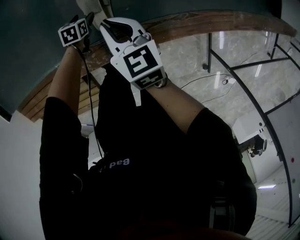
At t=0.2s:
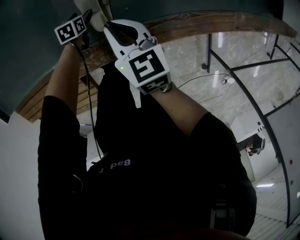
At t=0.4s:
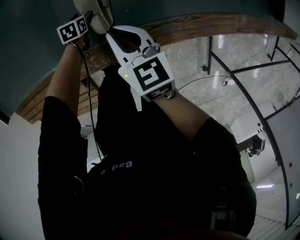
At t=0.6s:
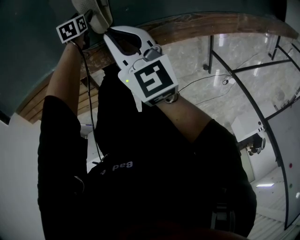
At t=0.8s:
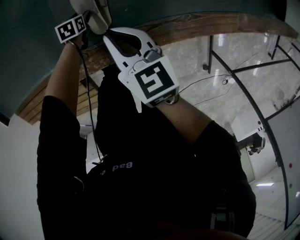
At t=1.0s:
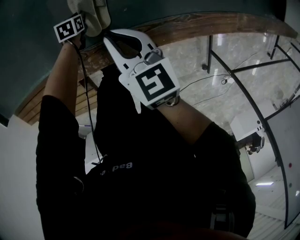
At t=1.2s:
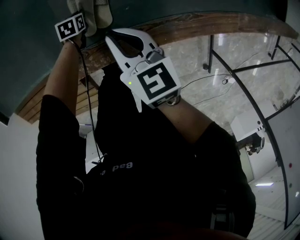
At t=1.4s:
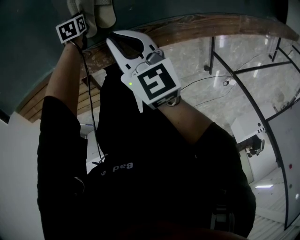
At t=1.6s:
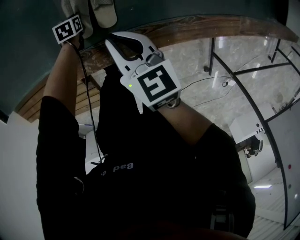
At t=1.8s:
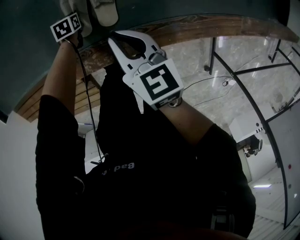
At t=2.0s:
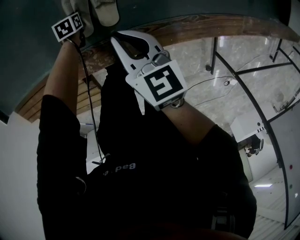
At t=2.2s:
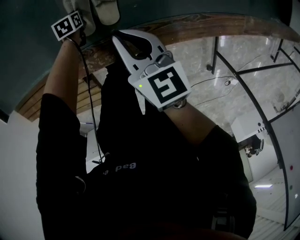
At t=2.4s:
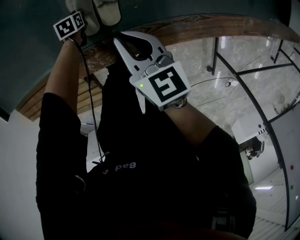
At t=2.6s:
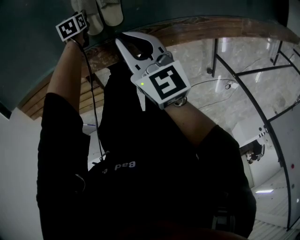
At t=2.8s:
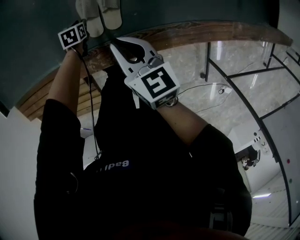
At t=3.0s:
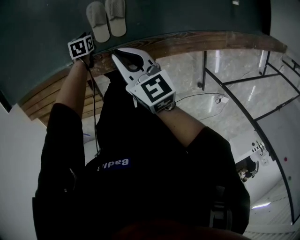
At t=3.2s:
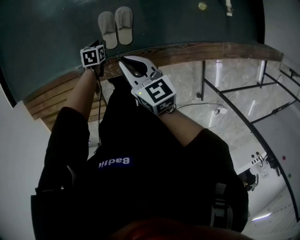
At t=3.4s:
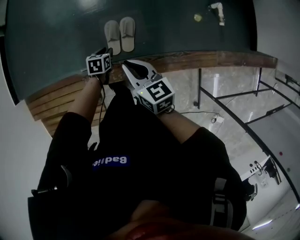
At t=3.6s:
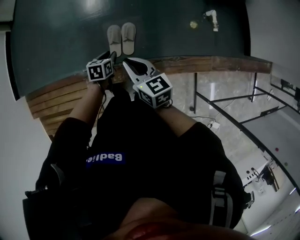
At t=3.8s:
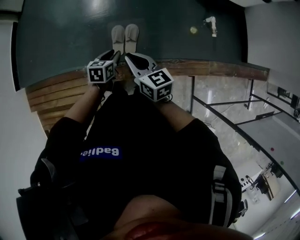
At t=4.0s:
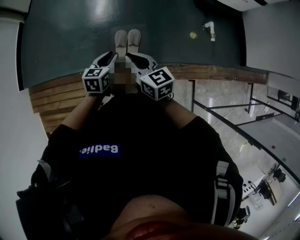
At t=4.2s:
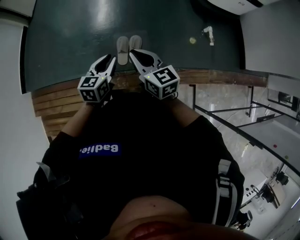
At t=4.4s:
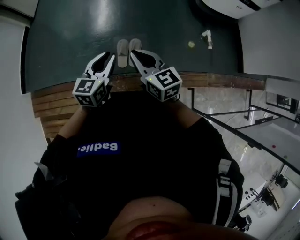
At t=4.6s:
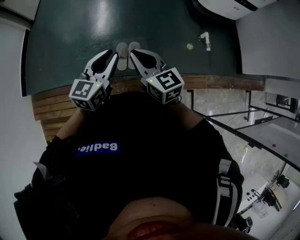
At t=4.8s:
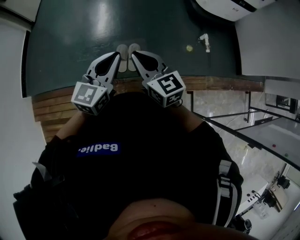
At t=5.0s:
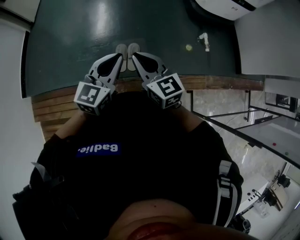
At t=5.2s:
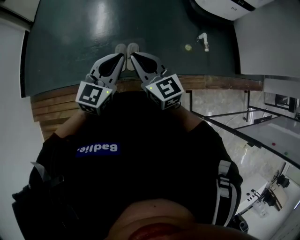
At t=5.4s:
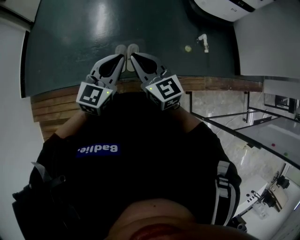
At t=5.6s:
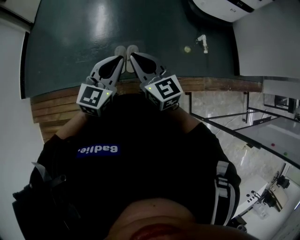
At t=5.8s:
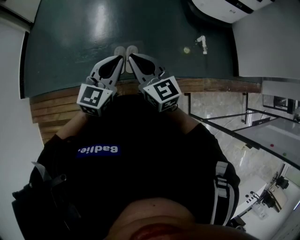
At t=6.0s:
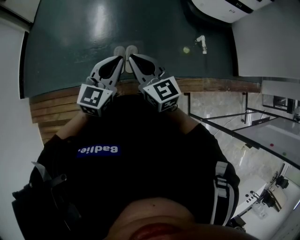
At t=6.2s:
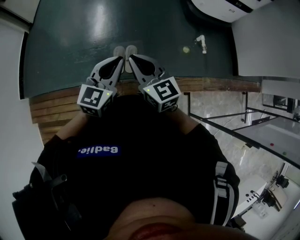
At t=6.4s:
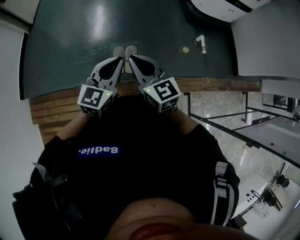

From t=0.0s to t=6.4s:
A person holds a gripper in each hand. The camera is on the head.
From t=0.0s to t=1.6s: The left gripper moves to the left and downward, about 10 cm, and closes up.
From t=1.6s to t=3.2s: Both grippers move upward, approximately 20 cm.
From t=3.2s to t=4.8s: The left gripper is displaced upward by approximately 60 cm, and angles its fingers upward, by roughly 60 degrees. The right gripper goes approximately 30 cm upward, and changes its angle by some 30 degrees.
From t=4.8s to t=6.4s: The grippers move only a little.

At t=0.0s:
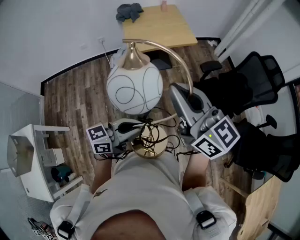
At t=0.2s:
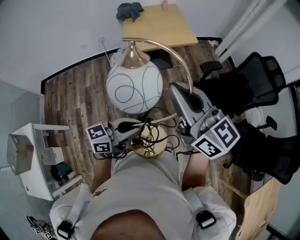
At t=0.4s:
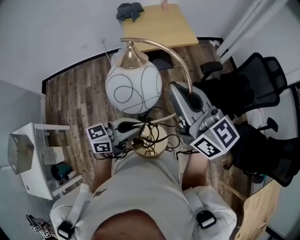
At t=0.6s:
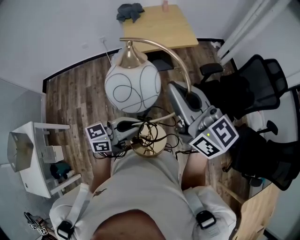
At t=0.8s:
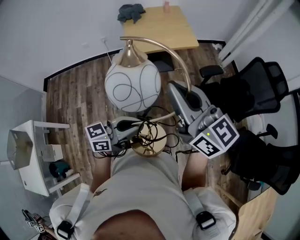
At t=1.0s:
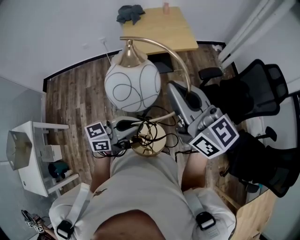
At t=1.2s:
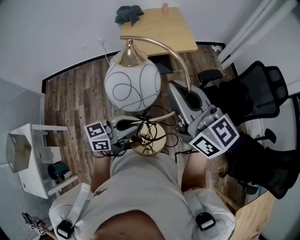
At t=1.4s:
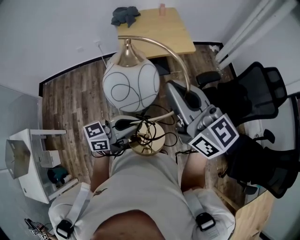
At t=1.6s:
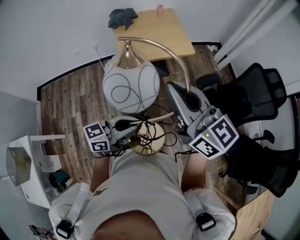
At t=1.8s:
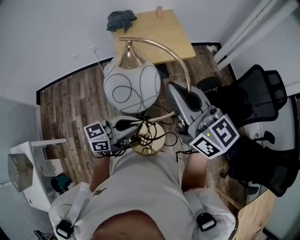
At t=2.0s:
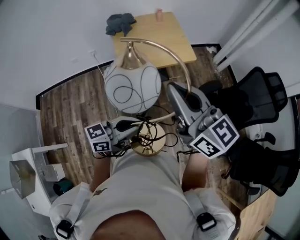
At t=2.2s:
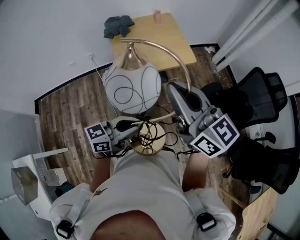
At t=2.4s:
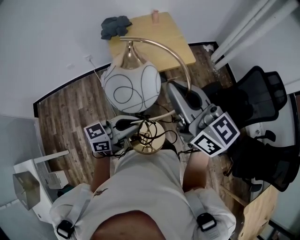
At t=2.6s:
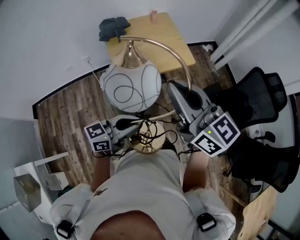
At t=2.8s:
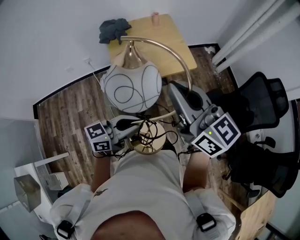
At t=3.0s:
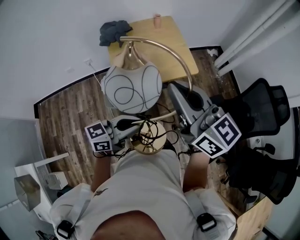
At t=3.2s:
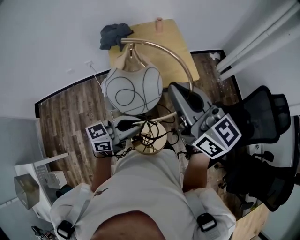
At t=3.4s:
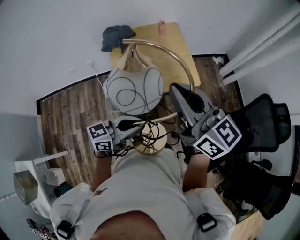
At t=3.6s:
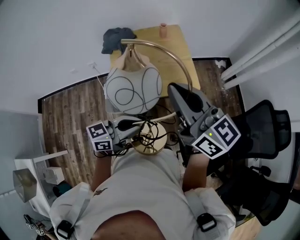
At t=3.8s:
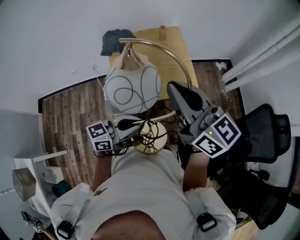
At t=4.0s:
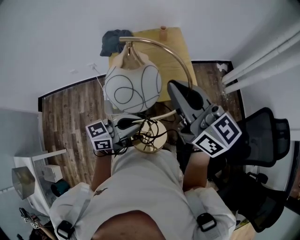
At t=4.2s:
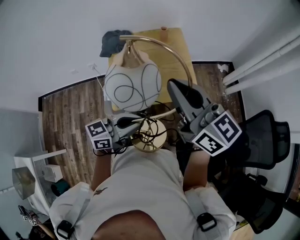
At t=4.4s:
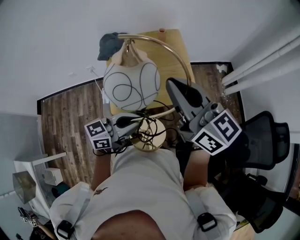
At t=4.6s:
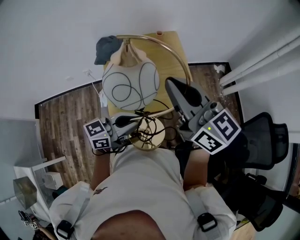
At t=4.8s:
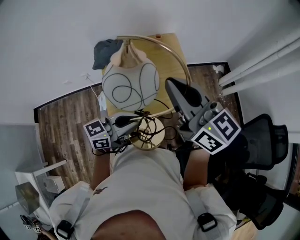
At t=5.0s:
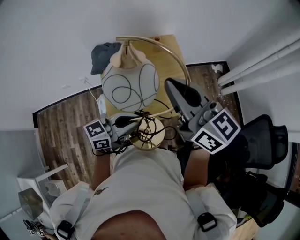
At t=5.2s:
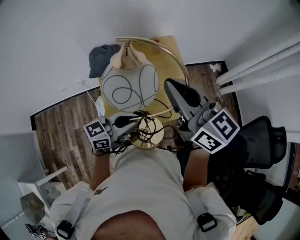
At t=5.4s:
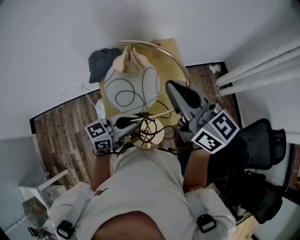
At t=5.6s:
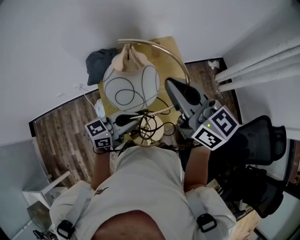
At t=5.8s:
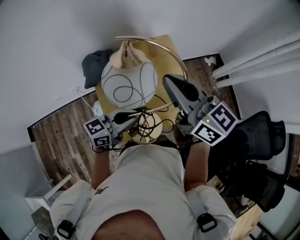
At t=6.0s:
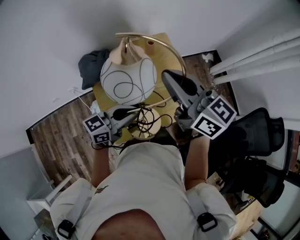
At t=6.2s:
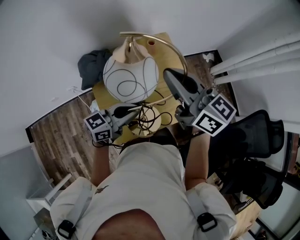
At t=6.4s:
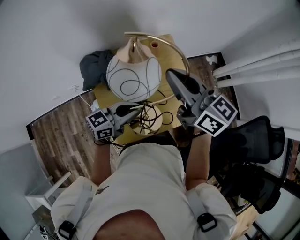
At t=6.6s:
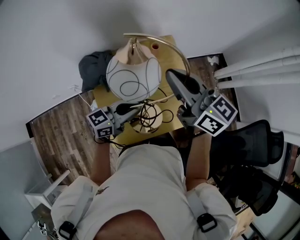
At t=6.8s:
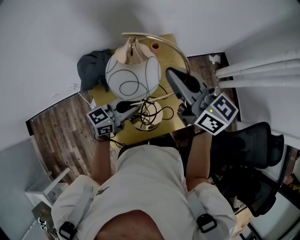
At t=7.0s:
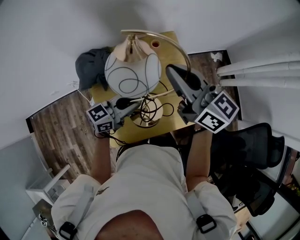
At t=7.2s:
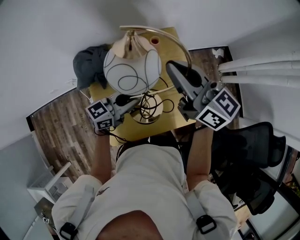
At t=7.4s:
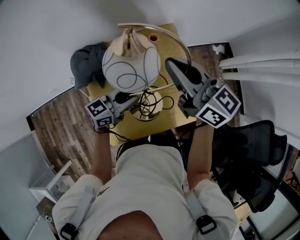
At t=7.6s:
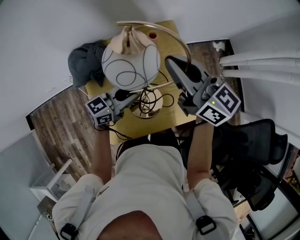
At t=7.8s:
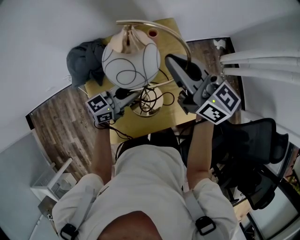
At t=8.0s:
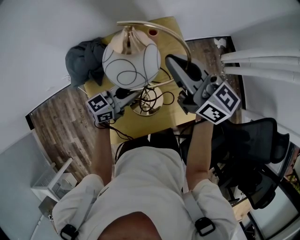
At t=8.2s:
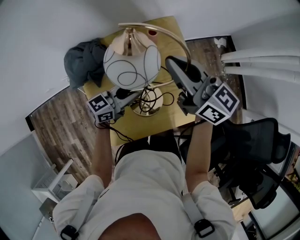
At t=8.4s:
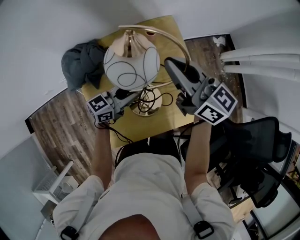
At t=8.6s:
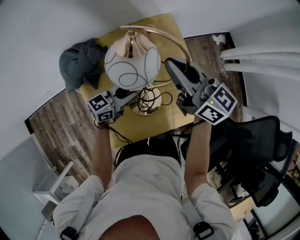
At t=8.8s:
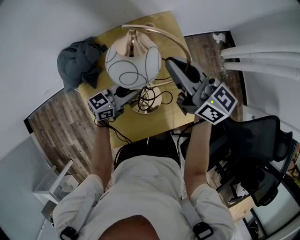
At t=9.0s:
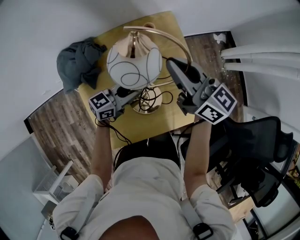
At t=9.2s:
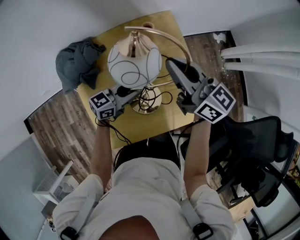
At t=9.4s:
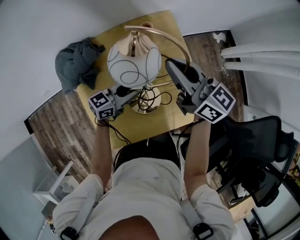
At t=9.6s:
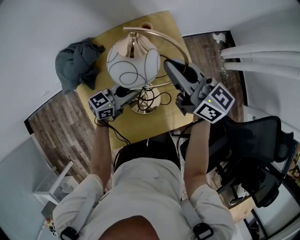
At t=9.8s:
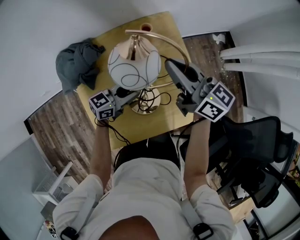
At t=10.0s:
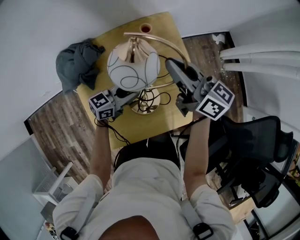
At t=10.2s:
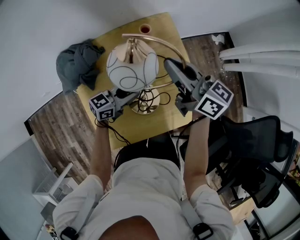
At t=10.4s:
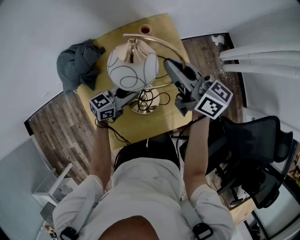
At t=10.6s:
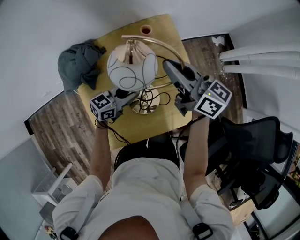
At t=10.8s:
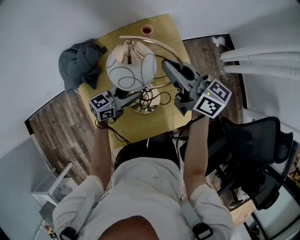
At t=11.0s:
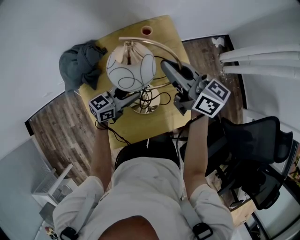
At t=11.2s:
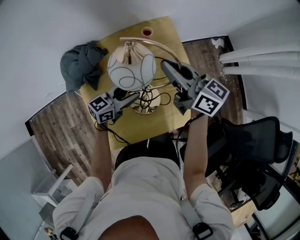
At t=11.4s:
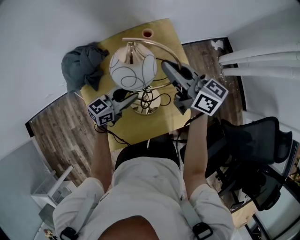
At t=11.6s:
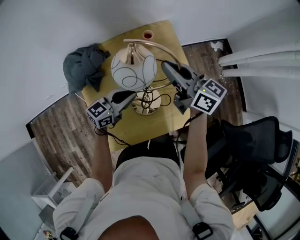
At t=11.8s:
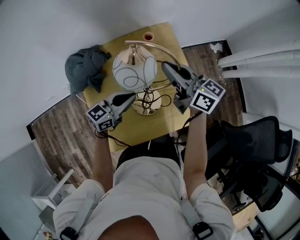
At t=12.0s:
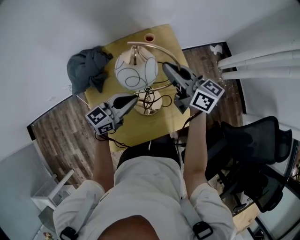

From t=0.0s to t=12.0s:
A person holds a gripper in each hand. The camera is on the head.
From t=0.0s to t=1.6s: Both grippers move forward, about 15 cm.
From t=1.6s to t=3.0s: The grippers both shift forward by some 20 cm.
From t=3.0s to t=4.4s: Both grippers move forward, about 20 cm.
From t=4.4s to t=6.0s: The grippers both shift forward and to the left by roughly 25 cm.
From t=6.0s to t=7.6s: Both grippers travel together forward and downward, approximately 15 cm.
From t=7.6s to t=9.0s: The grippers both shift downward by some 10 cm.
From t=9.0s to t=10.4s: The grippers make only small movements.
From t=10.4s to t=12.0s: The left gripper travels upward by some 10 cm, and opens, then closes again.

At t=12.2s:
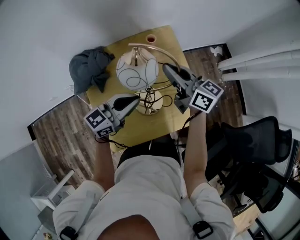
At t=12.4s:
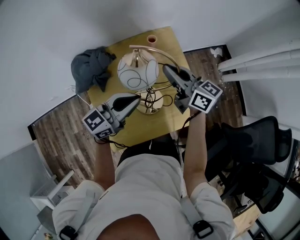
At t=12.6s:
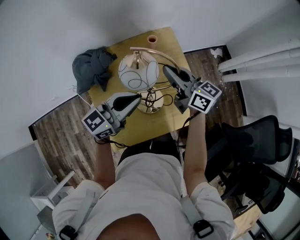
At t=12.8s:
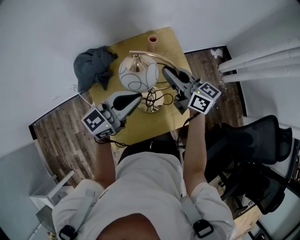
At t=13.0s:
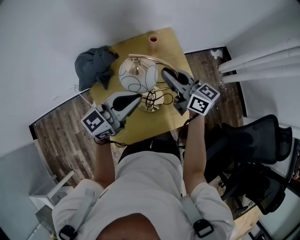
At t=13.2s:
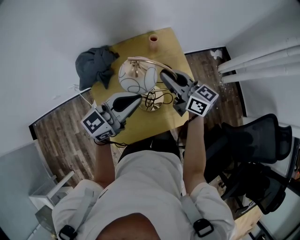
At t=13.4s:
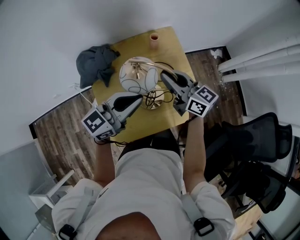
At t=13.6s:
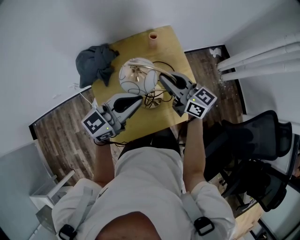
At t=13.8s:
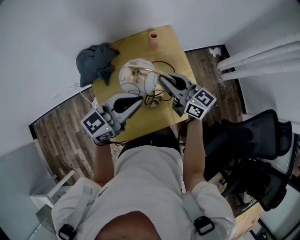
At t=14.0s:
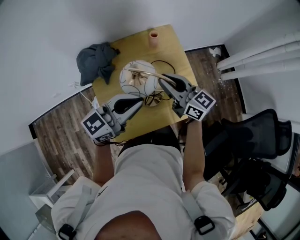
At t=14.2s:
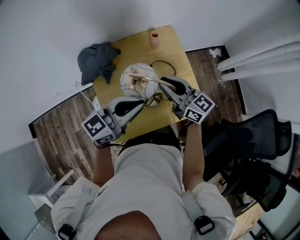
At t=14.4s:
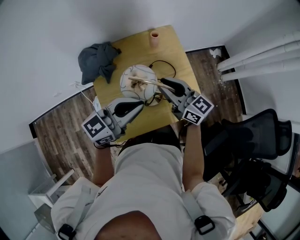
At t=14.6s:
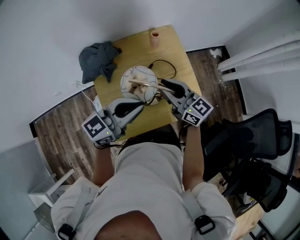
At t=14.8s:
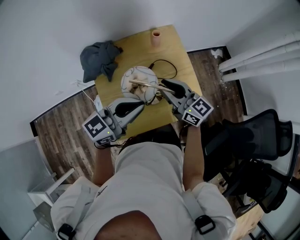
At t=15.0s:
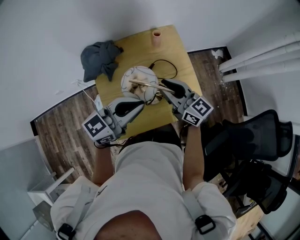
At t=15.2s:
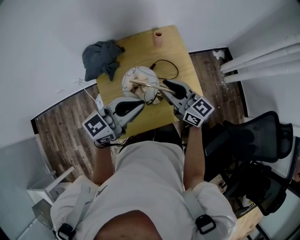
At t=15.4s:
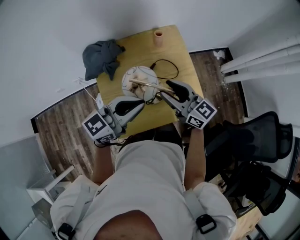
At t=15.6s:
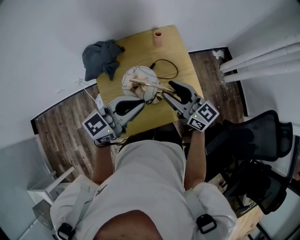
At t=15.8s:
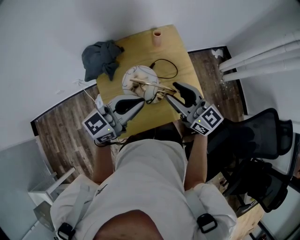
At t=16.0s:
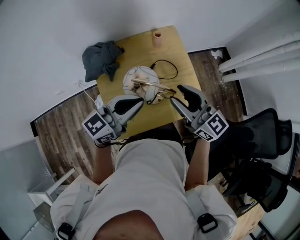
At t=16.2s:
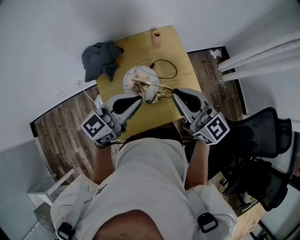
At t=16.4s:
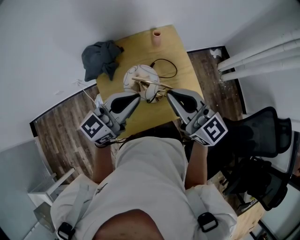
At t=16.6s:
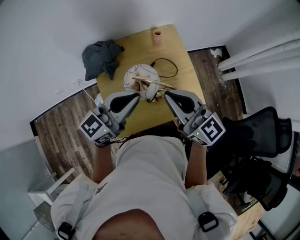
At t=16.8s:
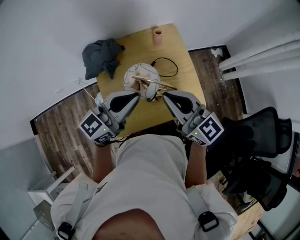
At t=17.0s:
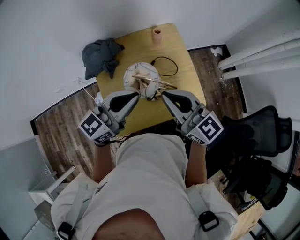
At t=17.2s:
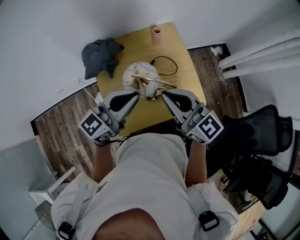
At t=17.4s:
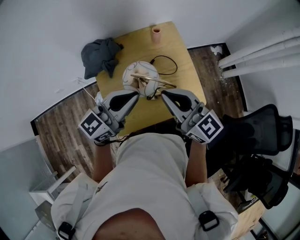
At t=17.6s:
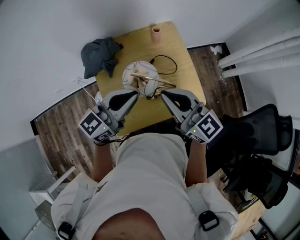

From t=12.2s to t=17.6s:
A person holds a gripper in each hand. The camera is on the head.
From t=12.2s to t=13.6s: The right gripper shifts some 10 cm backward, while the left gripper is displaced upward and backward by some 10 cm.
From t=13.6s to t=15.0s: The left gripper ends up approximately 5 cm from where it was; the right gripper is displaced backward by about 5 cm.
From t=15.0s to t=16.2s: The right gripper shifts some 10 cm upward, and opens, then closes again.
From t=16.2s to t=17.6s: The grippers stay close to where they were, moving slightly.
